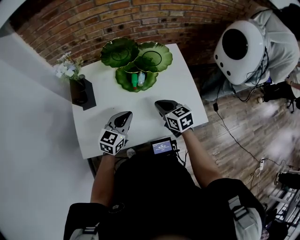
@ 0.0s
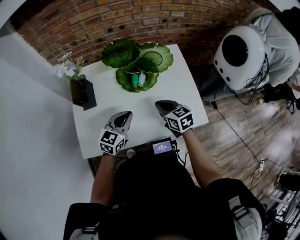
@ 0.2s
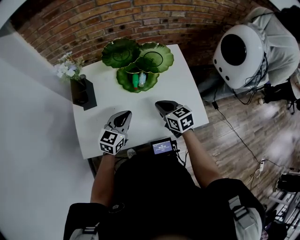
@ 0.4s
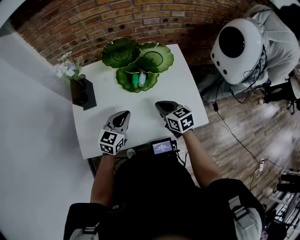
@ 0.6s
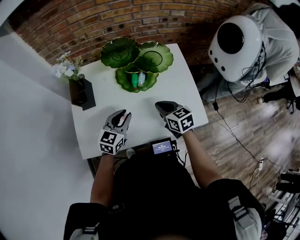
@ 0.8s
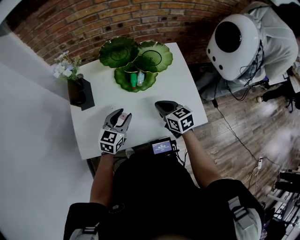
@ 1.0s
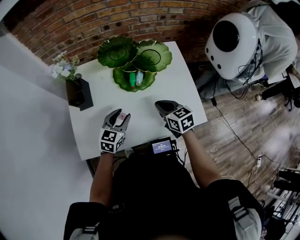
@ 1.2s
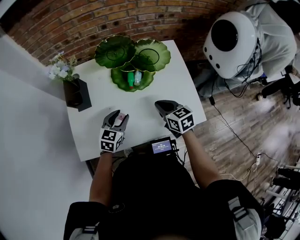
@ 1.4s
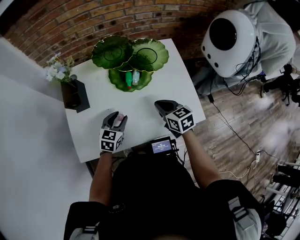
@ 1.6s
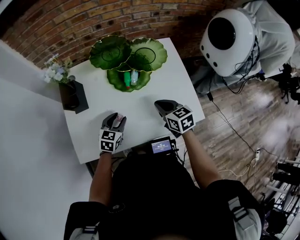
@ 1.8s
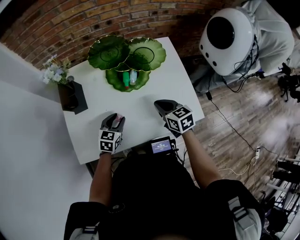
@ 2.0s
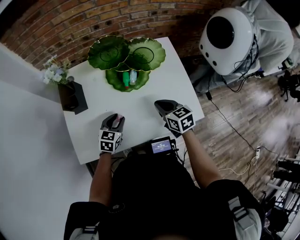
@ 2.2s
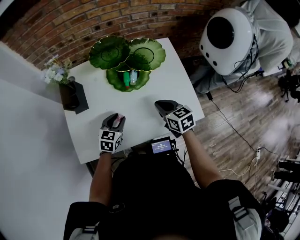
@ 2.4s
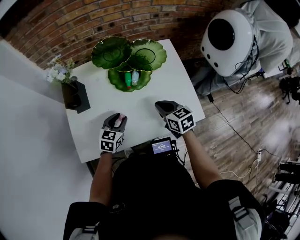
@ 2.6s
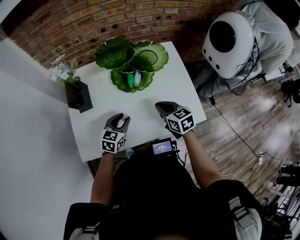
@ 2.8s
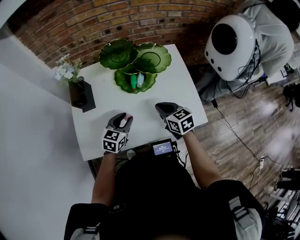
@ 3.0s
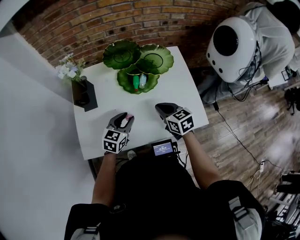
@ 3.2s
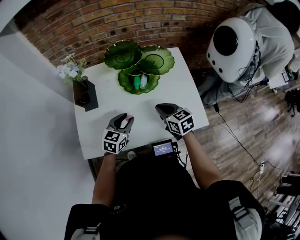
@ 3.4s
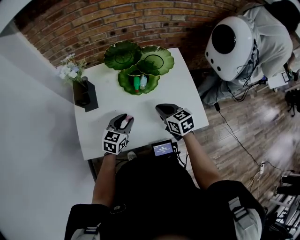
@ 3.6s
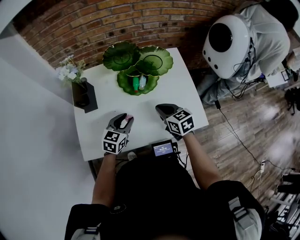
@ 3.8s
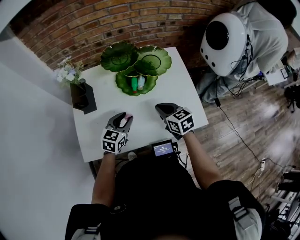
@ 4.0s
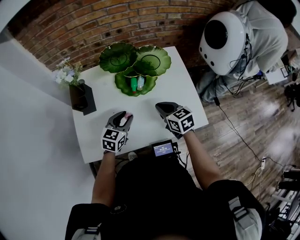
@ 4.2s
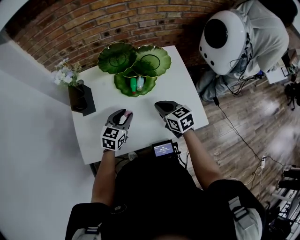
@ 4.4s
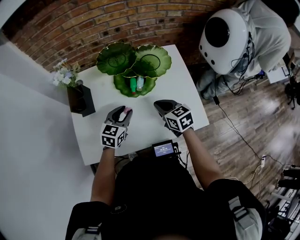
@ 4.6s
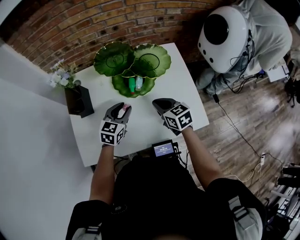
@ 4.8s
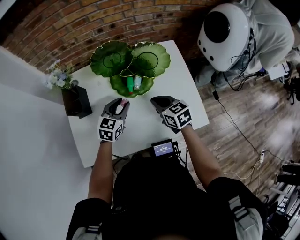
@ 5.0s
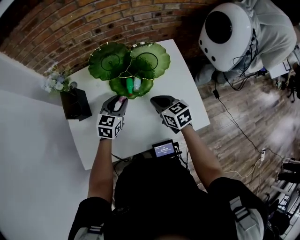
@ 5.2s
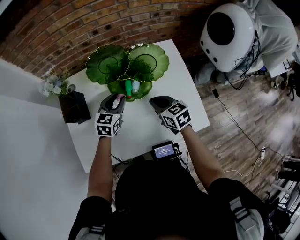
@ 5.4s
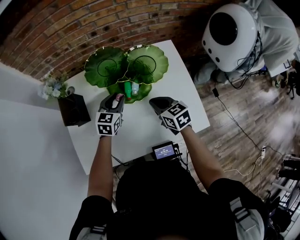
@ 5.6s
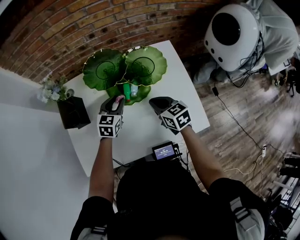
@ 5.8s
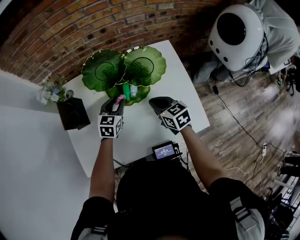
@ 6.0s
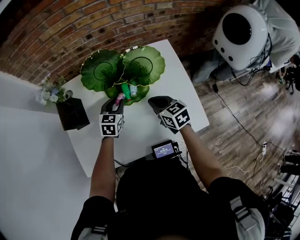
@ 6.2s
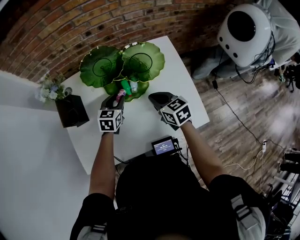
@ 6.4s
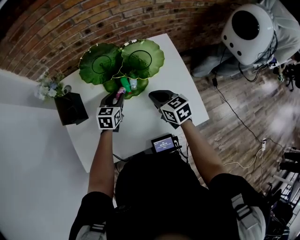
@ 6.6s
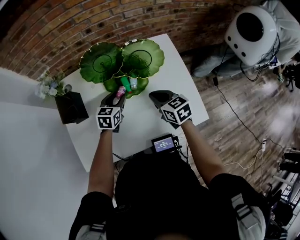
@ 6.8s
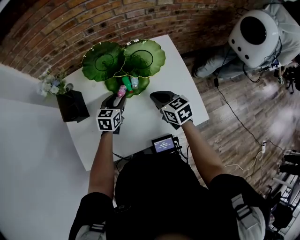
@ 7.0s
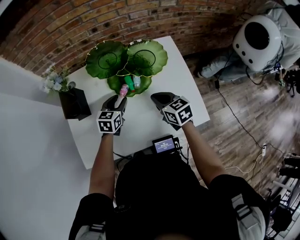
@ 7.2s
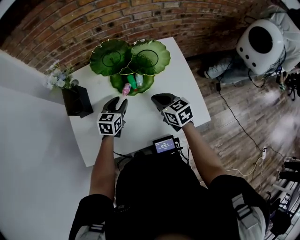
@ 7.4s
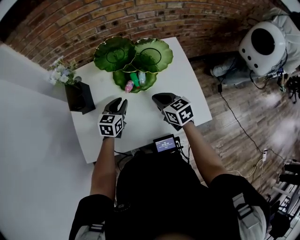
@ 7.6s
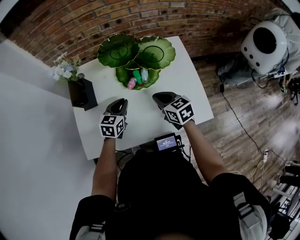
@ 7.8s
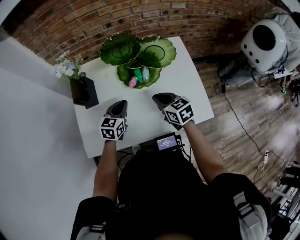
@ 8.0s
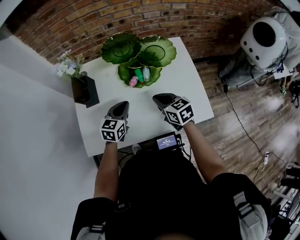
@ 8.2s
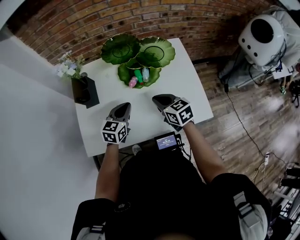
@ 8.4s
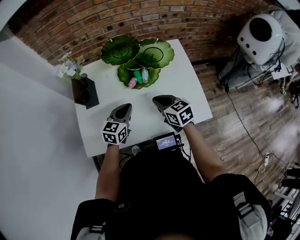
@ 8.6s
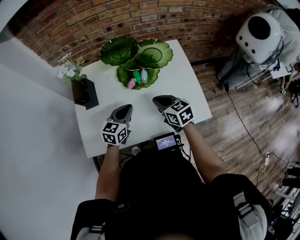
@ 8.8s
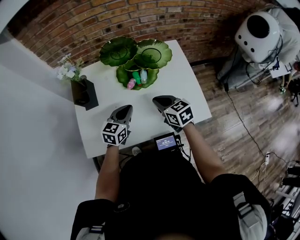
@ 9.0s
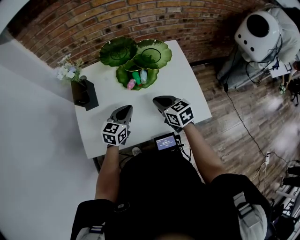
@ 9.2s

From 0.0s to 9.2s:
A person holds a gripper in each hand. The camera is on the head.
From 0.0s to 1.6s: The left gripper moves downward, roughly 10 cm, and opens its fingers.
From 1.6s to 3.0s: There are only small adjustments of the grippers.
From 3.0s to 4.6s: The left gripper goes roughly 5 cm forward.
From 4.6s to 6.2s: The right gripper moves roughly 5 cm, while the left gripper goes about 10 cm forward.
From 6.2s to 7.6s: The left gripper shifts approximately 5 cm backward.
From 7.6s to 9.2s: The left gripper is displaced backward by approximately 5 cm, and closes its fingers.

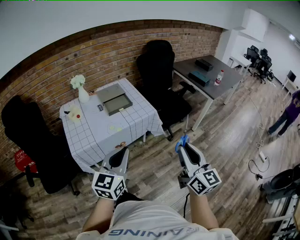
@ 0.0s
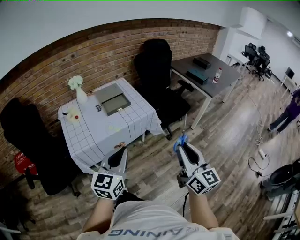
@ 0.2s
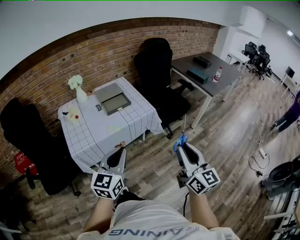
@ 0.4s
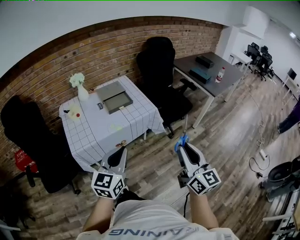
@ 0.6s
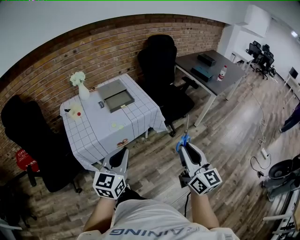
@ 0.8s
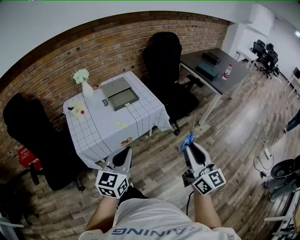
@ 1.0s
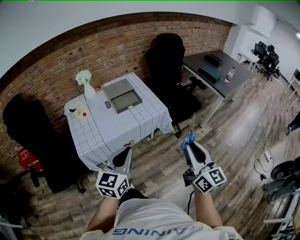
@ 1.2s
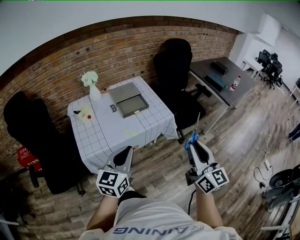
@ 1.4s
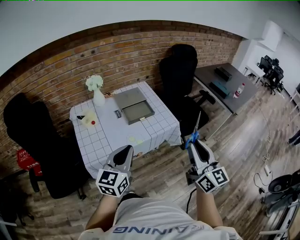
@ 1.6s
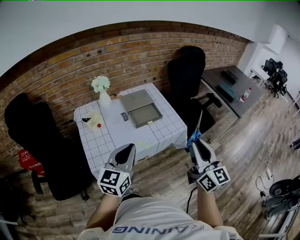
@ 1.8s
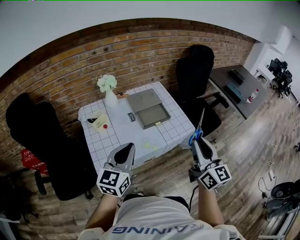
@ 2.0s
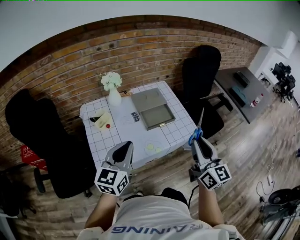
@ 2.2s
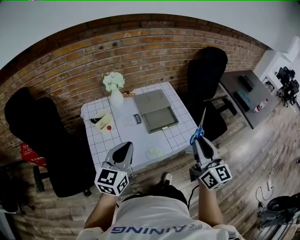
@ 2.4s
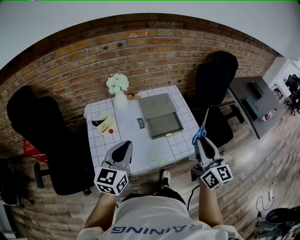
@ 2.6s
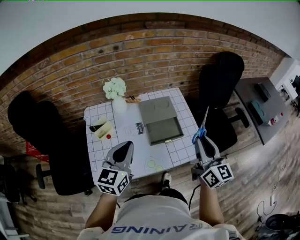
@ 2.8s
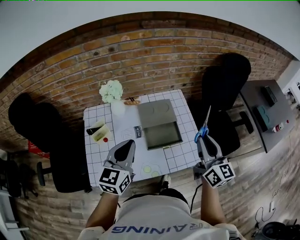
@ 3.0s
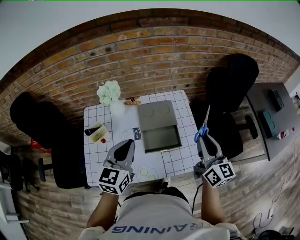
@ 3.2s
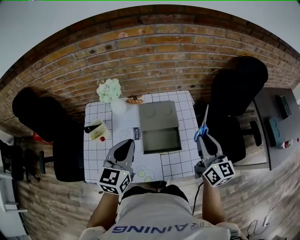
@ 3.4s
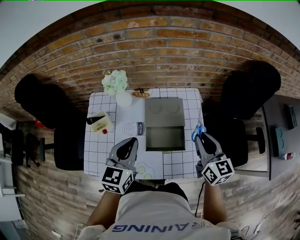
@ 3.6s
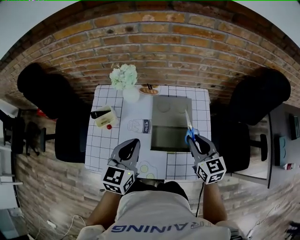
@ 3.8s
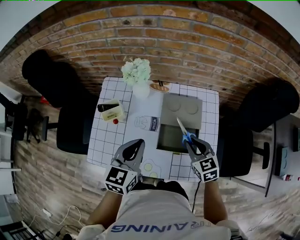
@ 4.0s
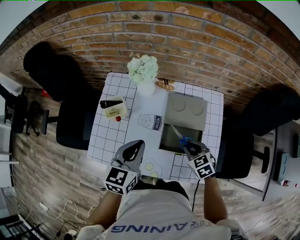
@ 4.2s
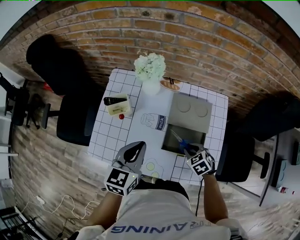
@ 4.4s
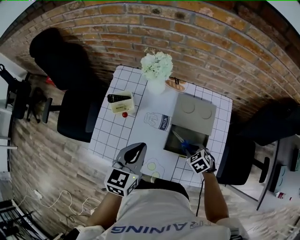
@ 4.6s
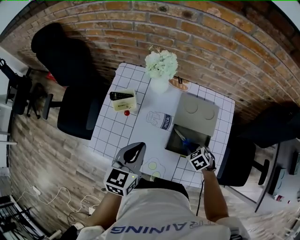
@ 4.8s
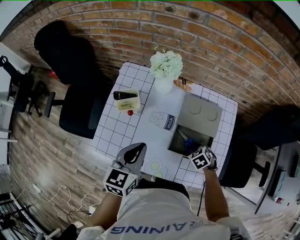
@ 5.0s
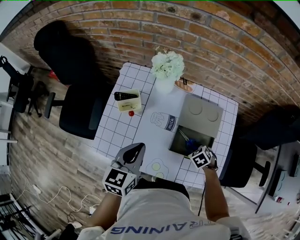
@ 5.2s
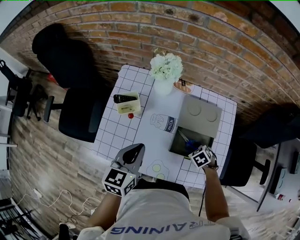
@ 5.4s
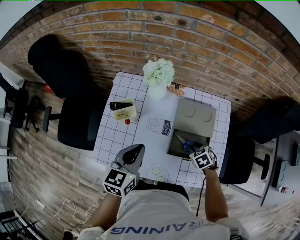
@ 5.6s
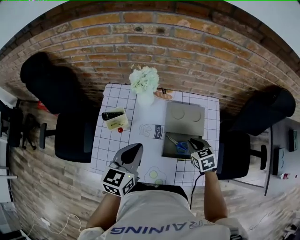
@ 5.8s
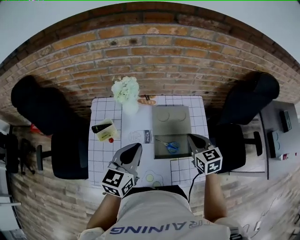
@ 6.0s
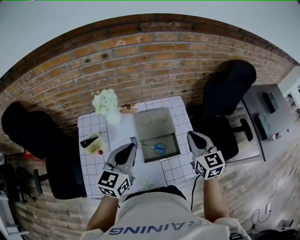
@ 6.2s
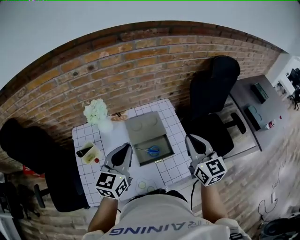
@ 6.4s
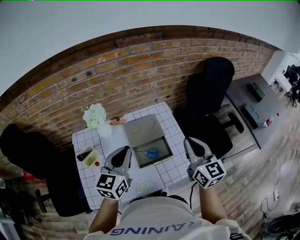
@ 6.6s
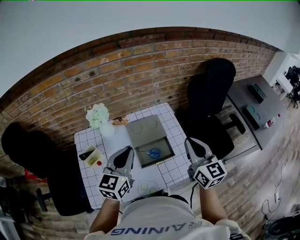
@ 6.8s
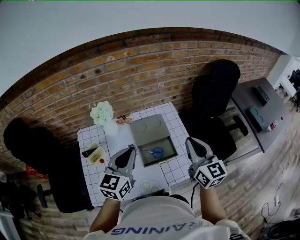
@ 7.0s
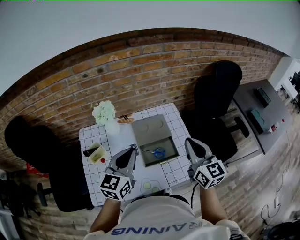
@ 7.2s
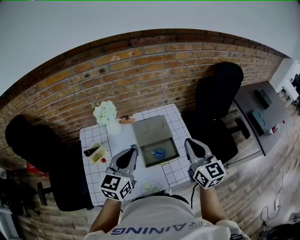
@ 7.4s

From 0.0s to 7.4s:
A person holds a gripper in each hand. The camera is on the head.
From 0.0s to 1.4s: The right gripper shifts roughly 10 cm forward and to the left. Meanwhile the left gripper travels to the left and forward by about 10 cm.
From 1.4s to 3.0s: The two grippers go roughly 40 cm forward.
From 3.0s to 4.4s: The left gripper travels downward by approximately 10 cm, and swivels some 30 degrees. The right gripper heads downward, covering about 30 cm, and angles its fingers downward, by approximately 60 degrees.
From 4.4s to 6.0s: The right gripper shifts about 15 cm upward, and turns by approximately 40 degrees. The left gripper ends up approximately 5 cm from where it was.
From 6.0s to 7.4s: The left gripper heads upward, covering some 5 cm, while the right gripper shifts some 20 cm upward and backward, and swivels approximately 30 degrees.

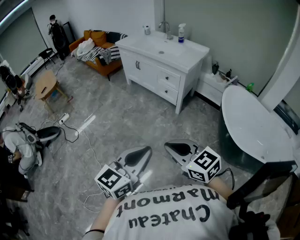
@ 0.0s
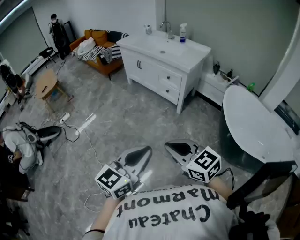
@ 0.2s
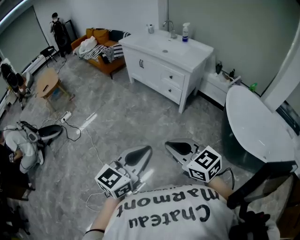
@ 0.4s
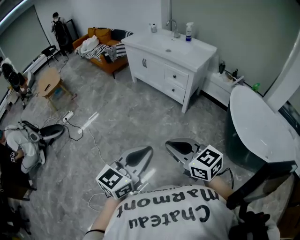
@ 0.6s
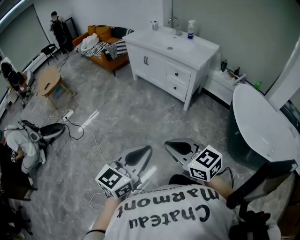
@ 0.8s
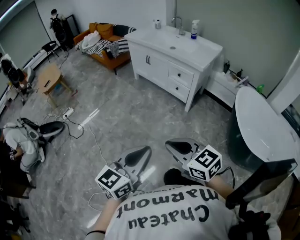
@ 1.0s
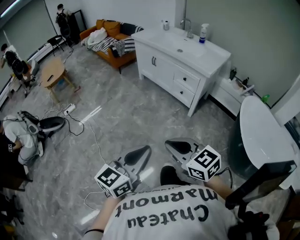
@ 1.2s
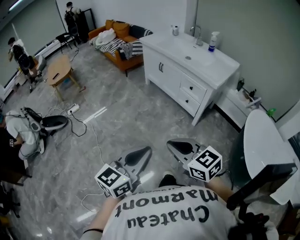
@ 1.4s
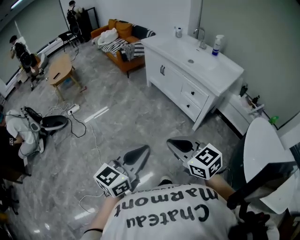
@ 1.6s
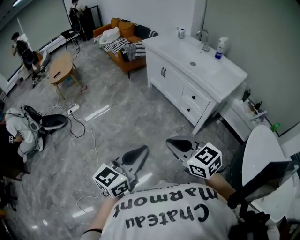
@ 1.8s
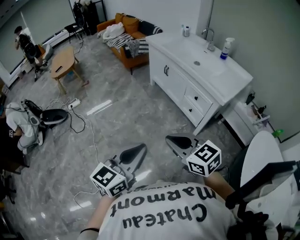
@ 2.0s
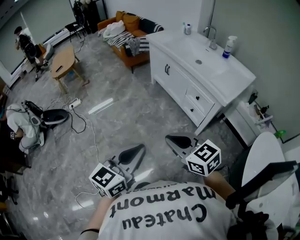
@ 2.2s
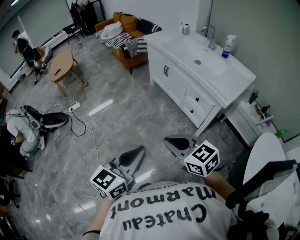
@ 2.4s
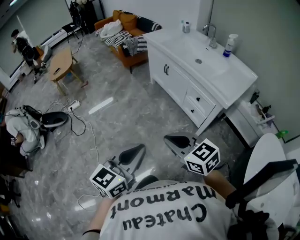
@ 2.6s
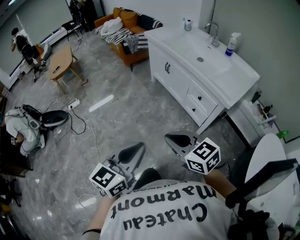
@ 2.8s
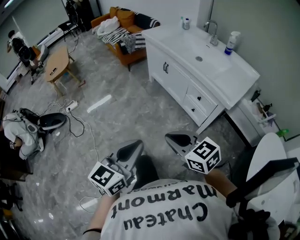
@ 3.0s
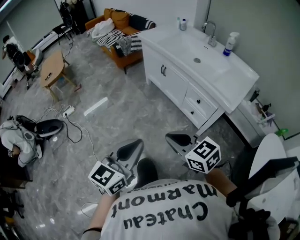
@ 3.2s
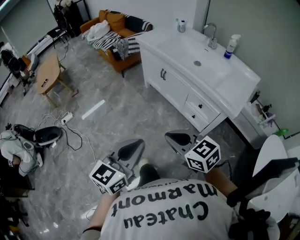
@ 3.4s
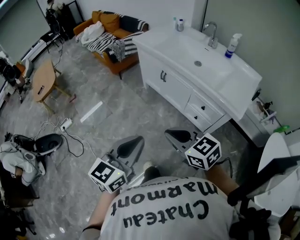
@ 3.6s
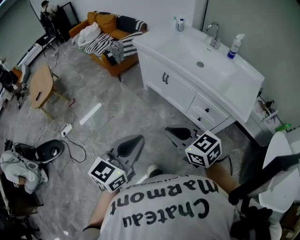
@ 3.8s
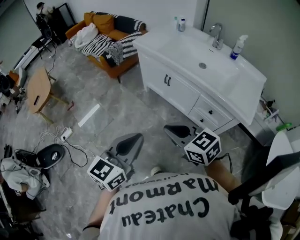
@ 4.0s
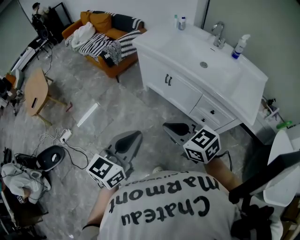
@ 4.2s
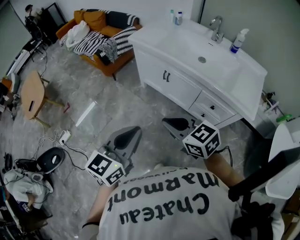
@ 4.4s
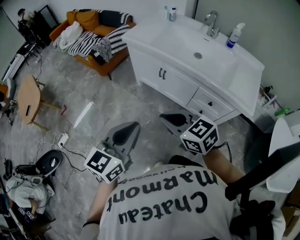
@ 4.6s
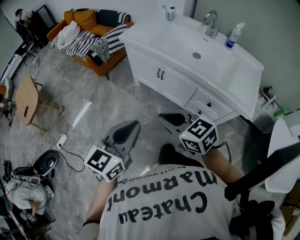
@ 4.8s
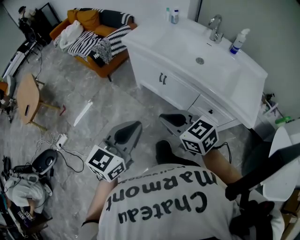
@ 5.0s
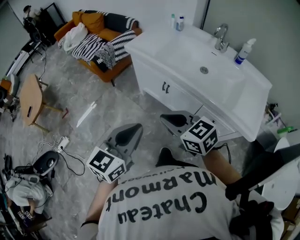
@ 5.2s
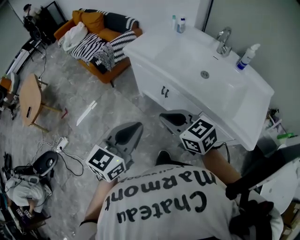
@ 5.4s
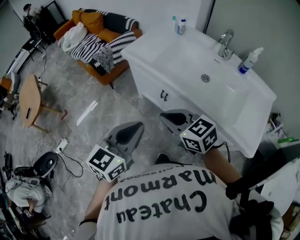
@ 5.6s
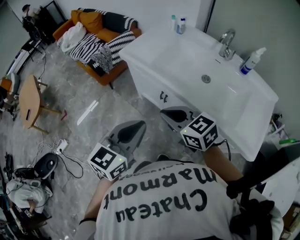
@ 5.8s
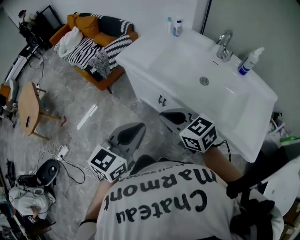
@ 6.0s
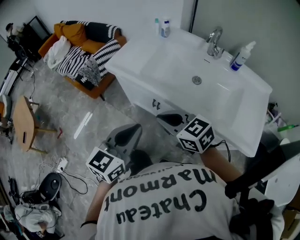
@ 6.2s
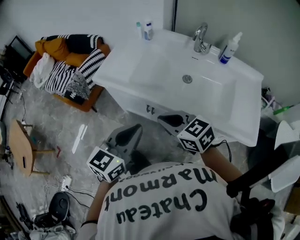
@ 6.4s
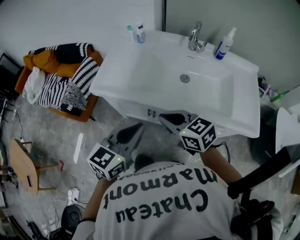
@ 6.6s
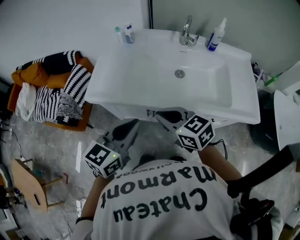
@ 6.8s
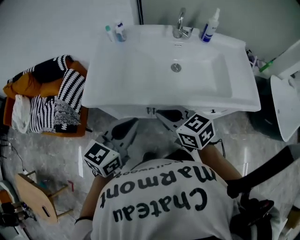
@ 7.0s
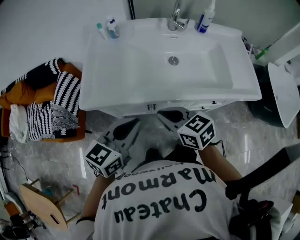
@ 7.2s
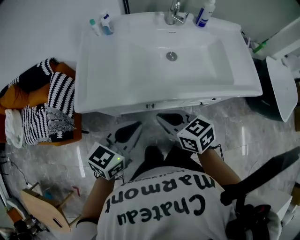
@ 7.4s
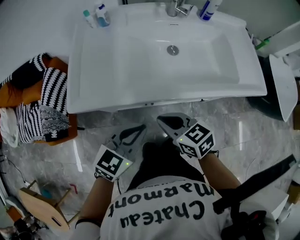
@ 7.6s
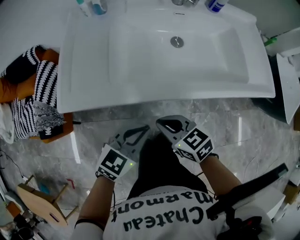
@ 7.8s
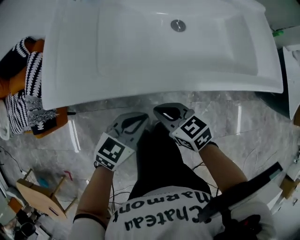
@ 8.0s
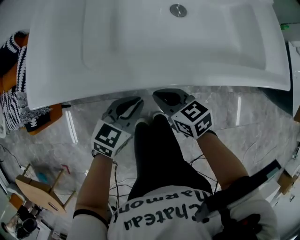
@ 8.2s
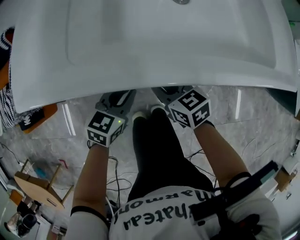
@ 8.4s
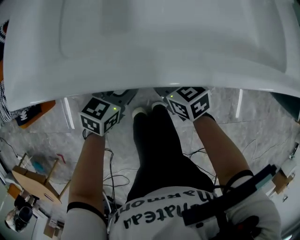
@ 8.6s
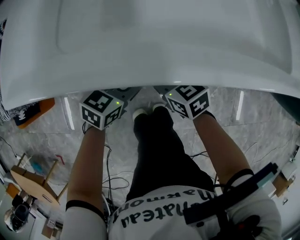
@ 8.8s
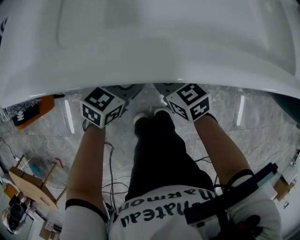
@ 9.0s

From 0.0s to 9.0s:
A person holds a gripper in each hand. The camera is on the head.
From 0.0s to 1.6s: The grippers both shift forward by roughly 20 cm.
From 1.6s to 3.0s: Both grippers travel together forward, approximately 20 cm.
From 3.0s to 4.4s: Both grippers travel together forward, approximately 35 cm.
From 4.4s to 6.0s: The right gripper shifts about 25 cm forward. The left gripper moves forward and to the right, about 25 cm.
From 6.0s to 7.6s: The right gripper moves about 20 cm, and swivels about 50 degrees, while the left gripper changes place by approximately 20 cm, and turns by about 50 degrees.
From 7.6s to 9.0s: The two grippers go about 30 cm downward. The left gripper opens.
